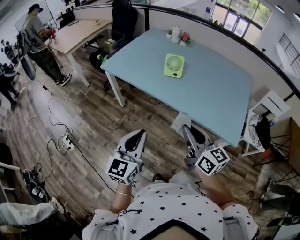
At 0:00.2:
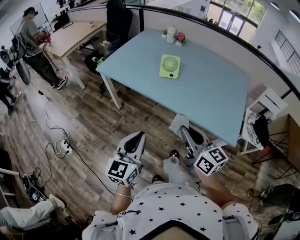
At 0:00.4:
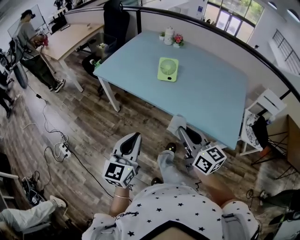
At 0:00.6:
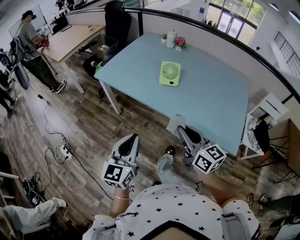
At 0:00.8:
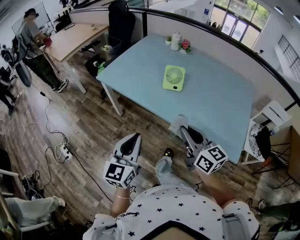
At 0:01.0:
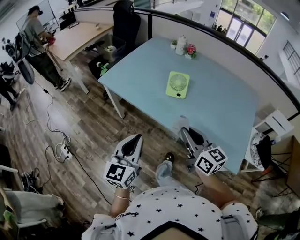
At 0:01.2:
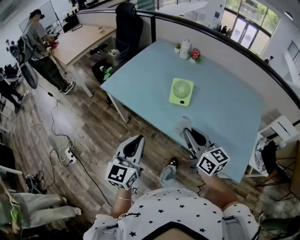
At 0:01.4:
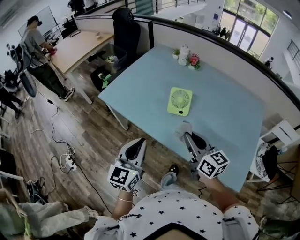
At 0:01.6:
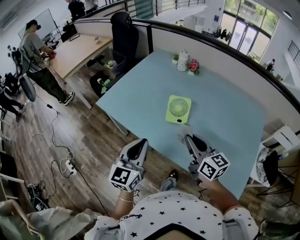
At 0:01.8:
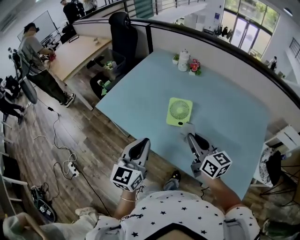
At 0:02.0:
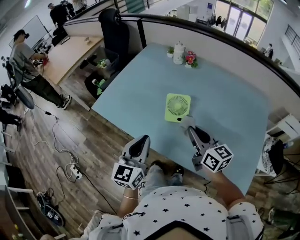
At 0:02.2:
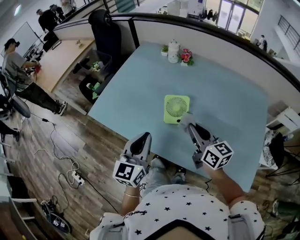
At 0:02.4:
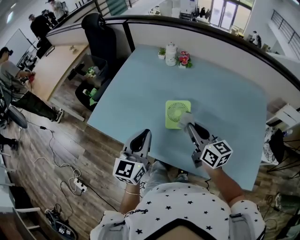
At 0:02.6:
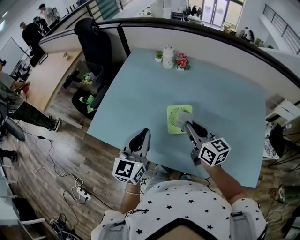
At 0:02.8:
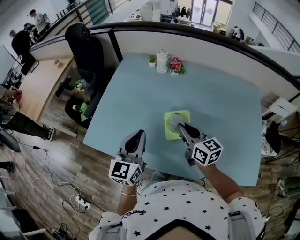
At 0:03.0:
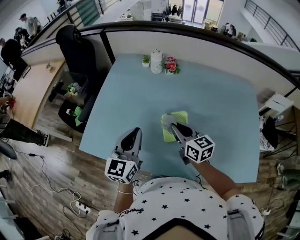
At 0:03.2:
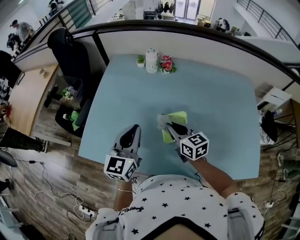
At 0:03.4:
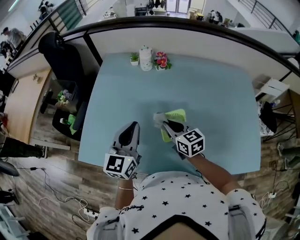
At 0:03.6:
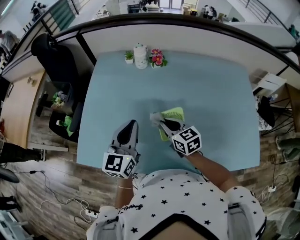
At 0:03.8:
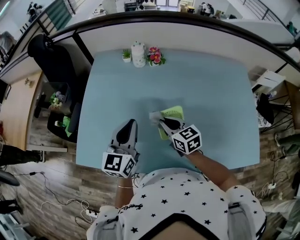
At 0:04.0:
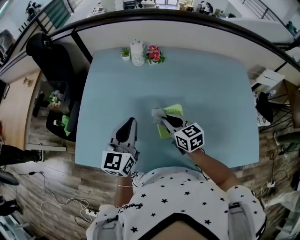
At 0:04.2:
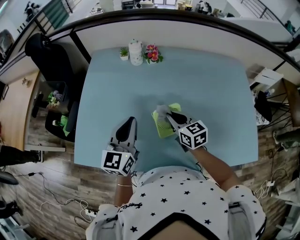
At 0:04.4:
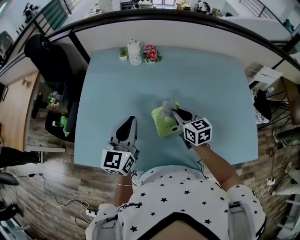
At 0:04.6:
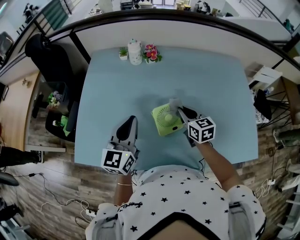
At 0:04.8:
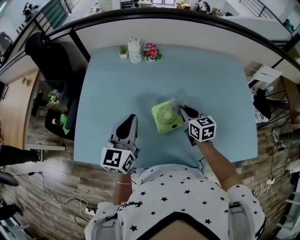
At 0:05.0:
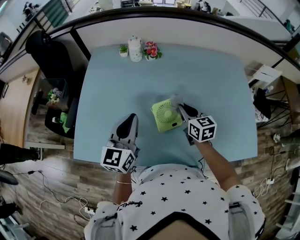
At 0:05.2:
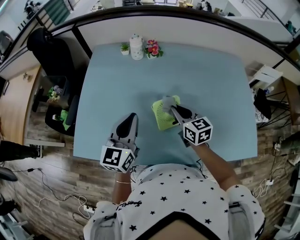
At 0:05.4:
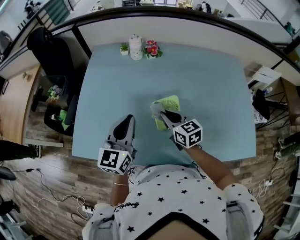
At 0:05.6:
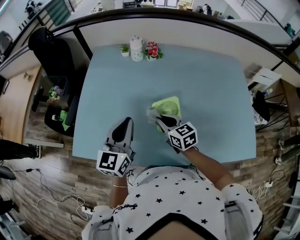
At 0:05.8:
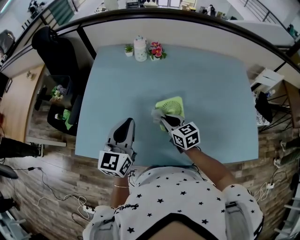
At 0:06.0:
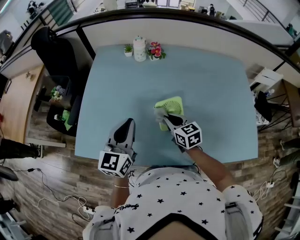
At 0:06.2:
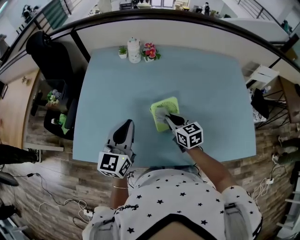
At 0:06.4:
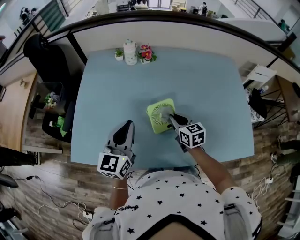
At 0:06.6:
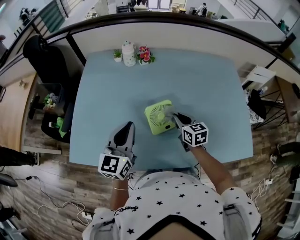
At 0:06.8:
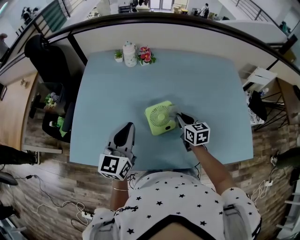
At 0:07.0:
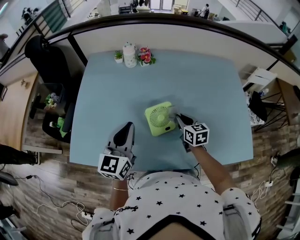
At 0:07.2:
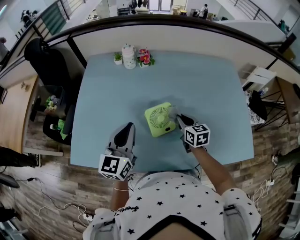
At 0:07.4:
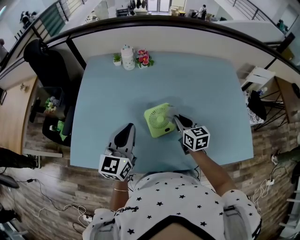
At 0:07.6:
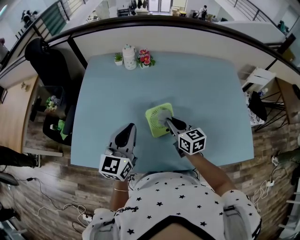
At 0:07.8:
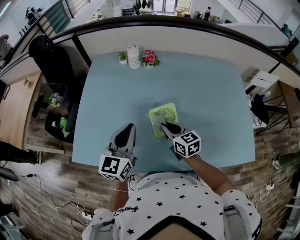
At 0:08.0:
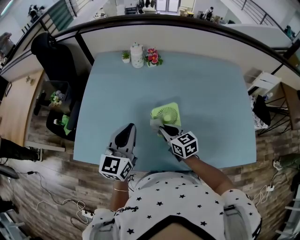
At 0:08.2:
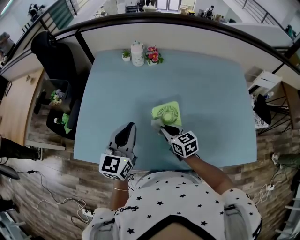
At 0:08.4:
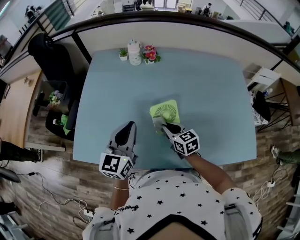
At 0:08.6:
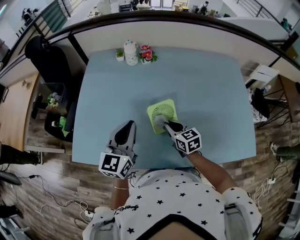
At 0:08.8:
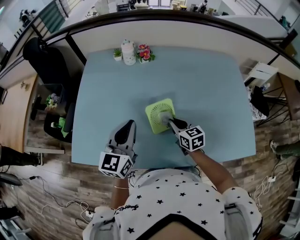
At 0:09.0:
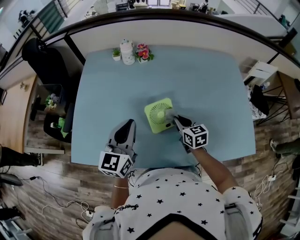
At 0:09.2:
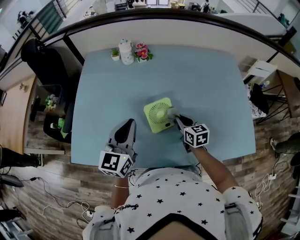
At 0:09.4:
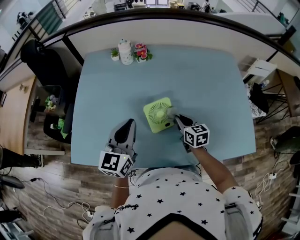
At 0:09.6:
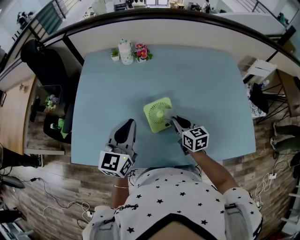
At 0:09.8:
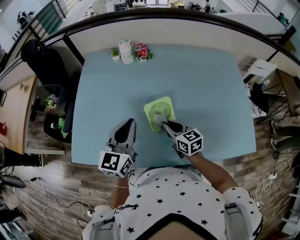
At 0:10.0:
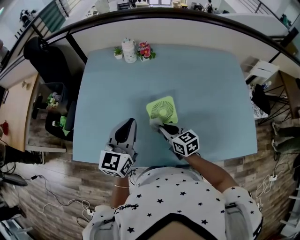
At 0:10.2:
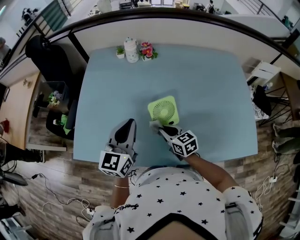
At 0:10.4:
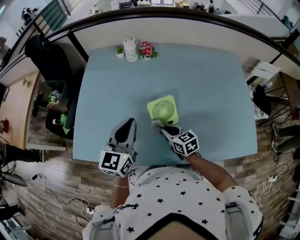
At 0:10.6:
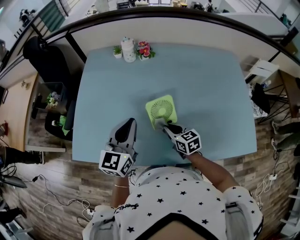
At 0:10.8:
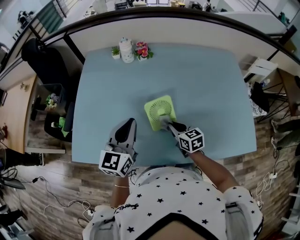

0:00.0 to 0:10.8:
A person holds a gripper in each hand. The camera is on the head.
0:00.0 to 0:01.6: Both grippers travel together forward, approximately 30 cm.
0:01.6 to 0:03.0: Both grippers travel together forward, about 20 cm.
0:03.0 to 0:04.6: The right gripper heads to the right and downward, covering roughly 10 cm, and changes its angle by roughly 20 degrees, while the left gripper heads forward, covering roughly 5 cm.
0:04.6 to 0:06.2: The right gripper moves to the left, some 5 cm.
0:06.2 to 0:07.8: The right gripper reaches about 10 cm to the right, then returns.
0:07.8 to 0:09.2: The right gripper heads to the right and downward, covering some 10 cm.

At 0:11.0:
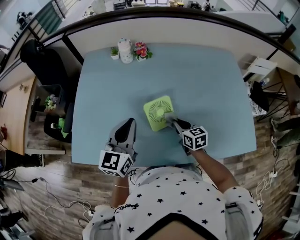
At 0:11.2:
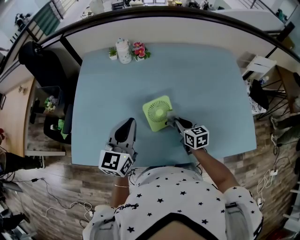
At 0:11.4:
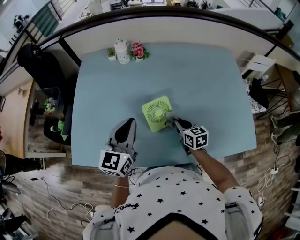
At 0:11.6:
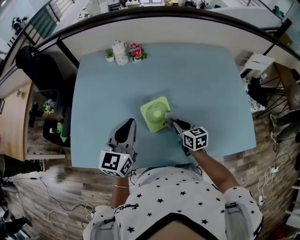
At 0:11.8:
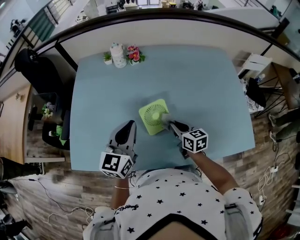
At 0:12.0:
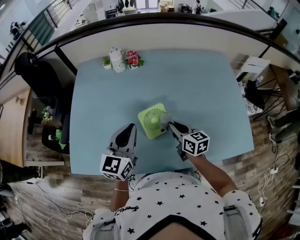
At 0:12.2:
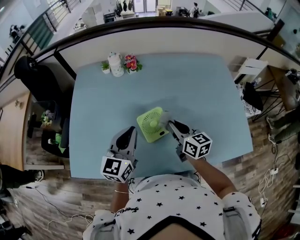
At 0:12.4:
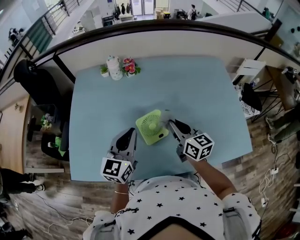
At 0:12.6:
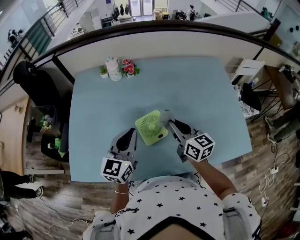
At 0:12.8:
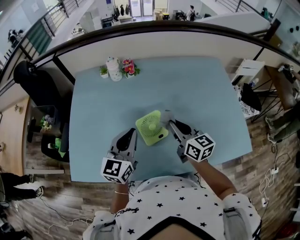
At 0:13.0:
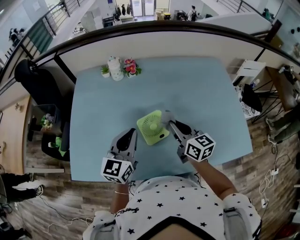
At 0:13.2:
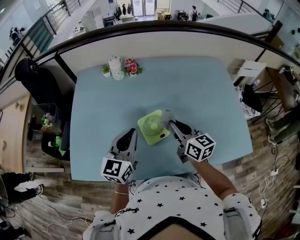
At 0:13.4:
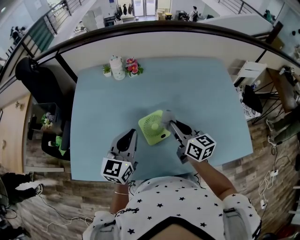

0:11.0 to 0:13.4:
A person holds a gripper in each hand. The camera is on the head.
0:11.0 to 0:12.2: The right gripper shifts approximately 10 cm upward.
0:12.2 to 0:13.4: The grippers stay close to where they were, moving slightly.

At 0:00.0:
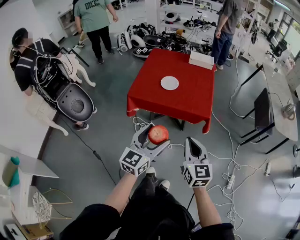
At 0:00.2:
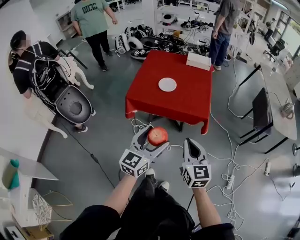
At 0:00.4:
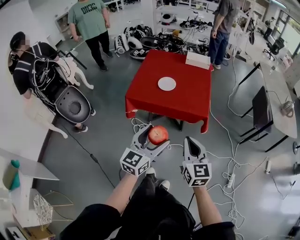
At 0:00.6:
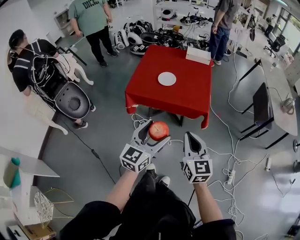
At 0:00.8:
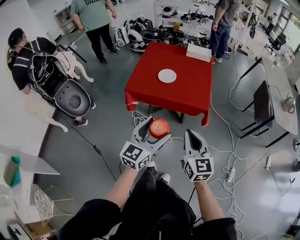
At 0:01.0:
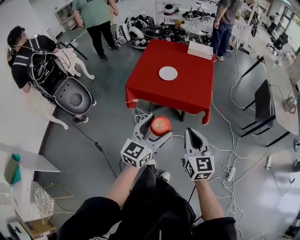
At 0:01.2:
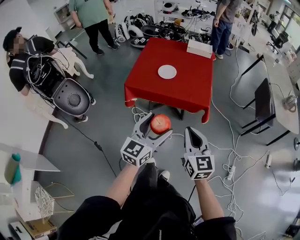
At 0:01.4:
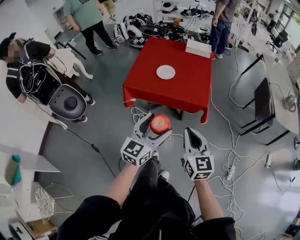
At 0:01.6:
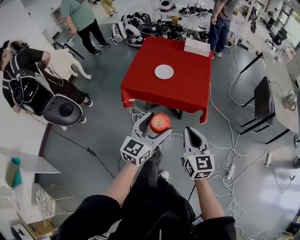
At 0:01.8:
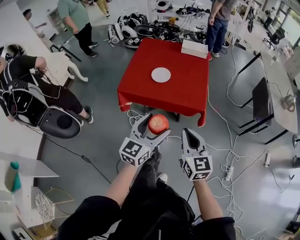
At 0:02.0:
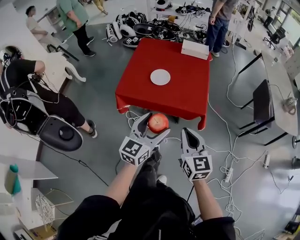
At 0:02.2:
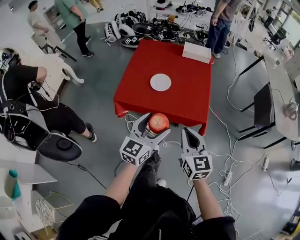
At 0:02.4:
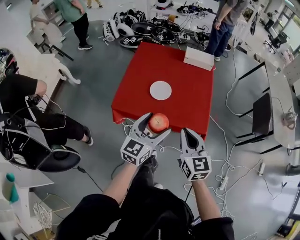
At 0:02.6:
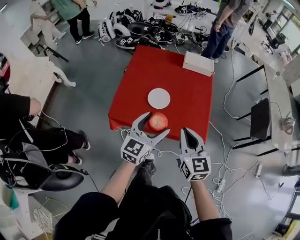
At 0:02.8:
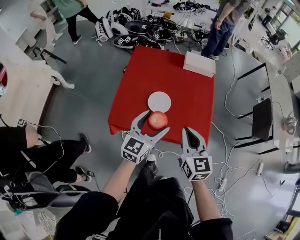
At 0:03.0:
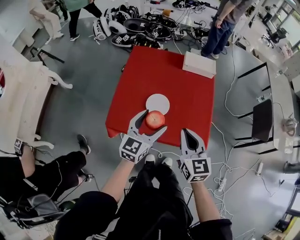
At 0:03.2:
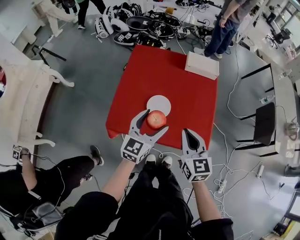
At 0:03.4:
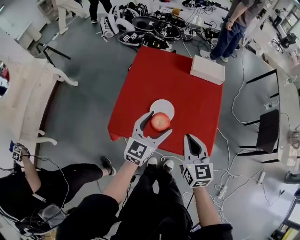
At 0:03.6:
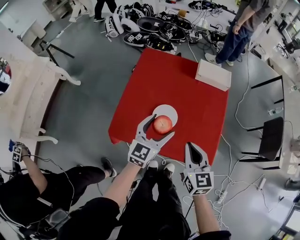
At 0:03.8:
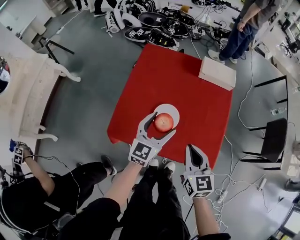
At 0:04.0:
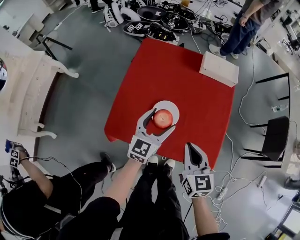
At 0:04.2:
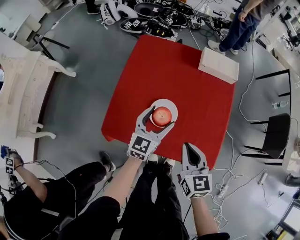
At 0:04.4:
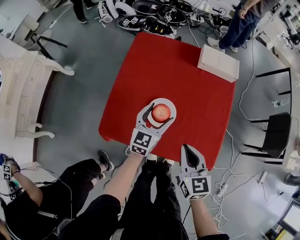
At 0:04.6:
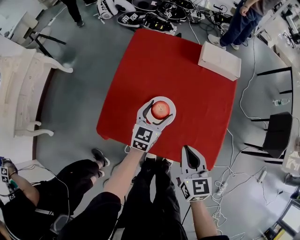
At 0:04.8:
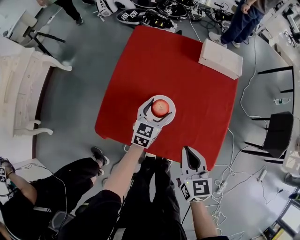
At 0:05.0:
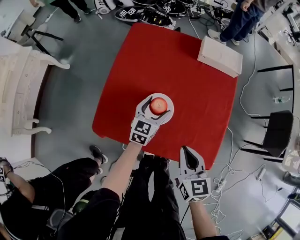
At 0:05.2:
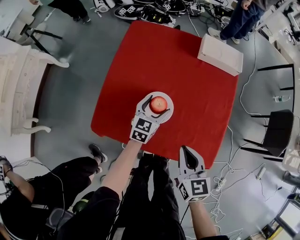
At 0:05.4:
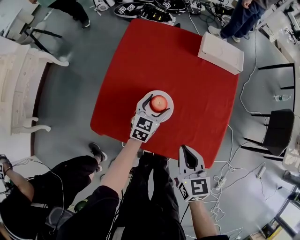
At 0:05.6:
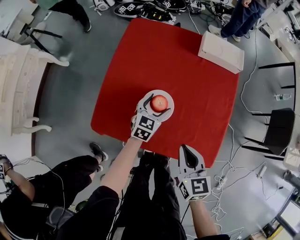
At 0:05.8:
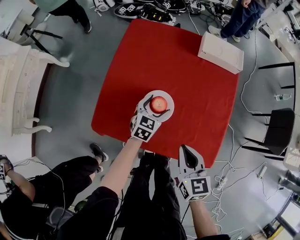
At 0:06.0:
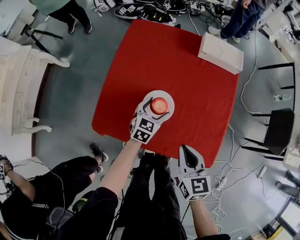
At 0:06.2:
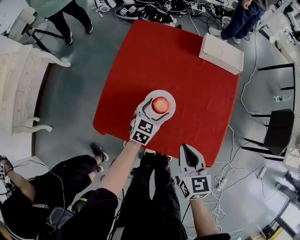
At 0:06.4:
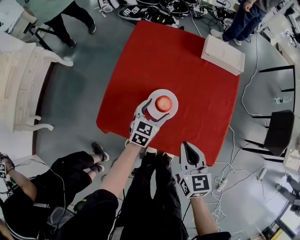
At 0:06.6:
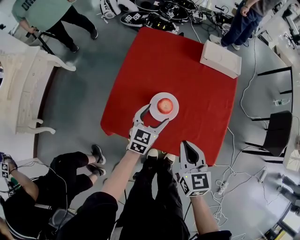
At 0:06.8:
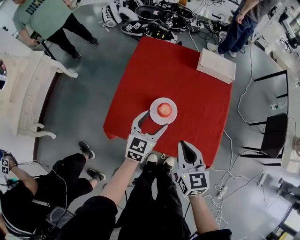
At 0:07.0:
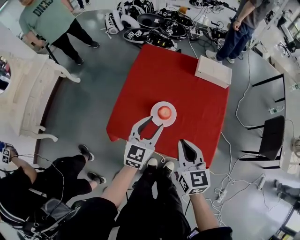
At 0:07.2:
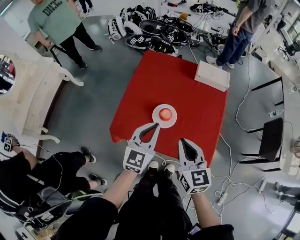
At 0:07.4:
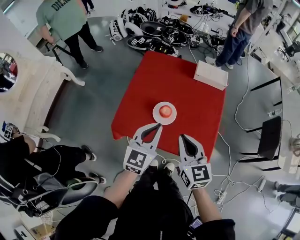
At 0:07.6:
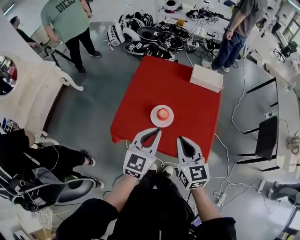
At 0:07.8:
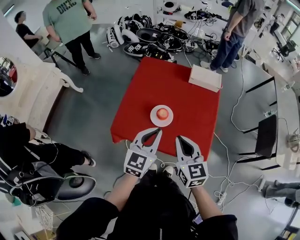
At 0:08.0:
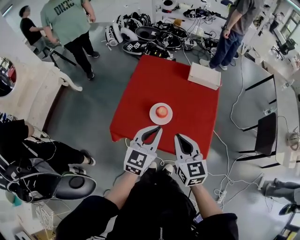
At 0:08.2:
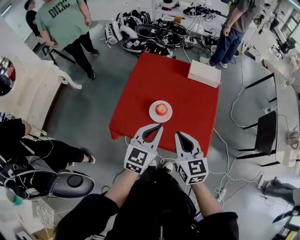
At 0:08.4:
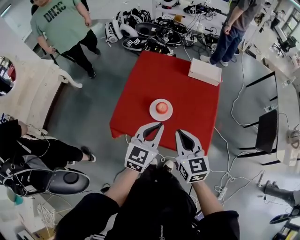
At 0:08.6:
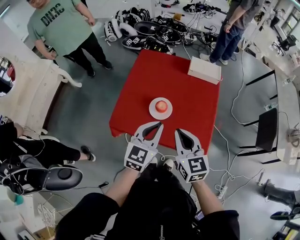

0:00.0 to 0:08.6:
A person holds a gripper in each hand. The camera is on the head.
0:00.0 to 0:01.4: The grippers make only small movements.
0:01.4 to 0:02.8: Both grippers move forward, some 35 cm.
0:02.8 to 0:04.4: The right gripper is displaced downward and forward by some 15 cm, while the left gripper is displaced forward and downward by some 25 cm.
0:04.4 to 0:05.8: The left gripper is displaced downward by about 10 cm, and changes its angle by approximately 20 degrees.
0:05.8 to 0:07.2: The left gripper is displaced upward and backward by about 30 cm, turns by roughly 30 degrees, and closes its fingers. The right gripper goes approximately 15 cm upward.
0:07.2 to 0:08.6: The left gripper is displaced backward by about 5 cm.

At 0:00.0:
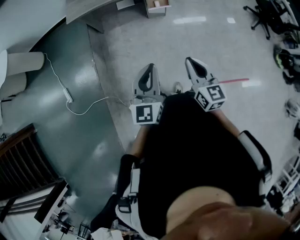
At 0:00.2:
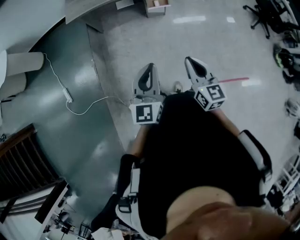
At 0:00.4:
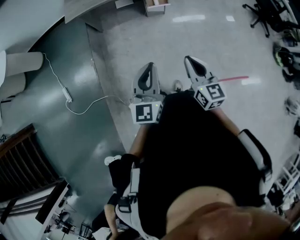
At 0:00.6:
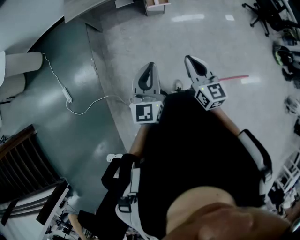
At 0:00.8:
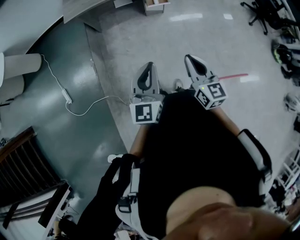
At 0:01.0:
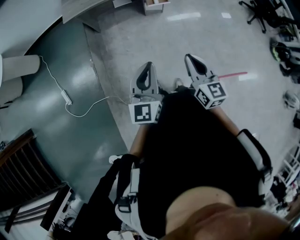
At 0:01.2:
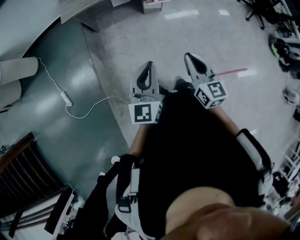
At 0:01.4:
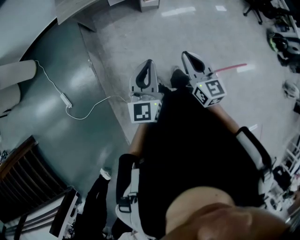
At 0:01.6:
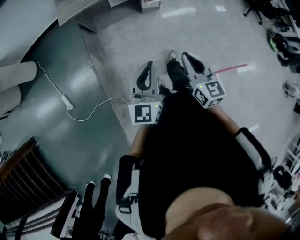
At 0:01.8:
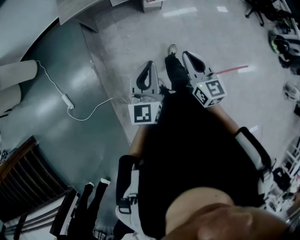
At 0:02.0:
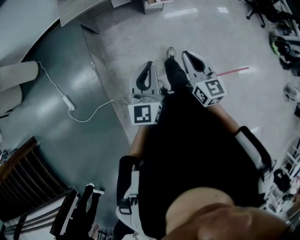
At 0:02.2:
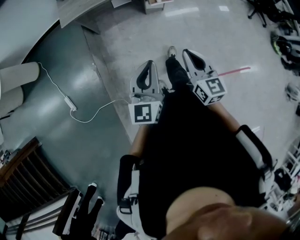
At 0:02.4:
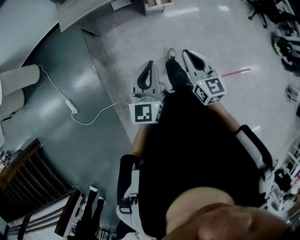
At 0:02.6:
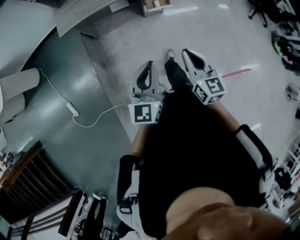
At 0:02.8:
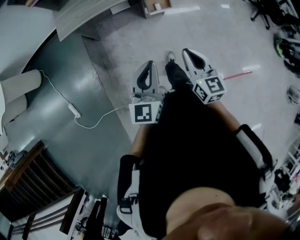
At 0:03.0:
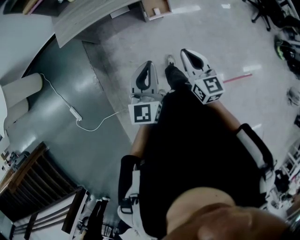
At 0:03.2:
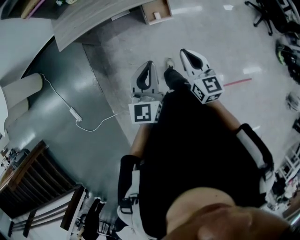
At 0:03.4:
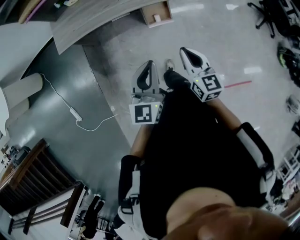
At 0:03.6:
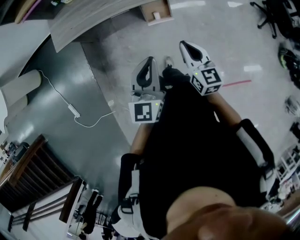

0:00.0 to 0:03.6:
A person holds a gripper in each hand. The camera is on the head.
0:00.0 to 0:01.8: The two grippers go roughly 10 cm to the left.
0:01.8 to 0:03.6: Both grippers move forward, some 35 cm.
